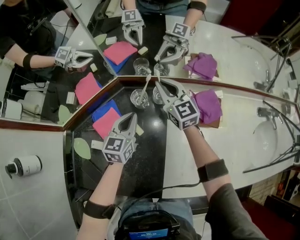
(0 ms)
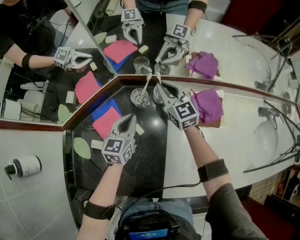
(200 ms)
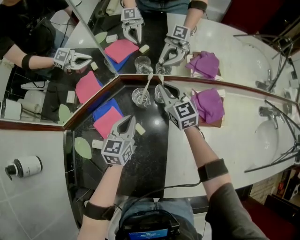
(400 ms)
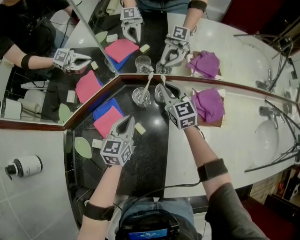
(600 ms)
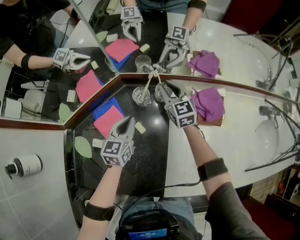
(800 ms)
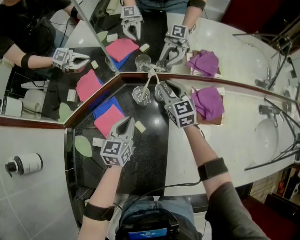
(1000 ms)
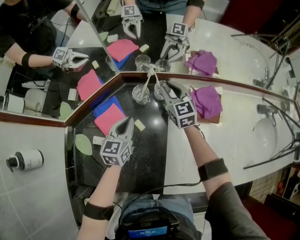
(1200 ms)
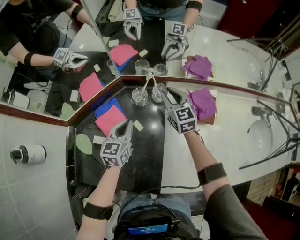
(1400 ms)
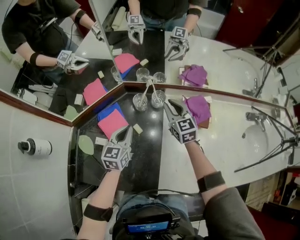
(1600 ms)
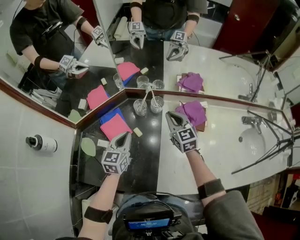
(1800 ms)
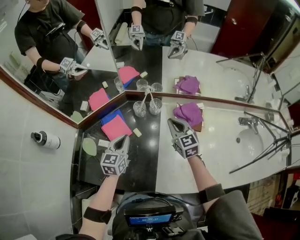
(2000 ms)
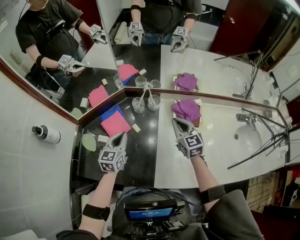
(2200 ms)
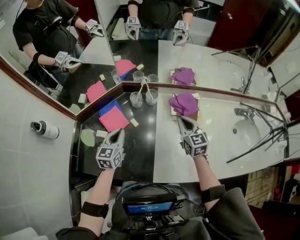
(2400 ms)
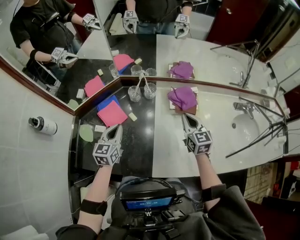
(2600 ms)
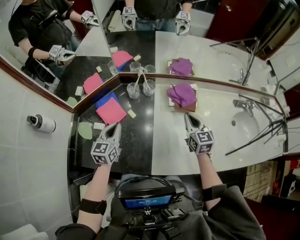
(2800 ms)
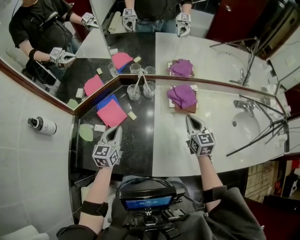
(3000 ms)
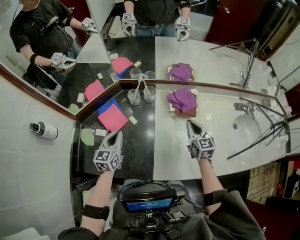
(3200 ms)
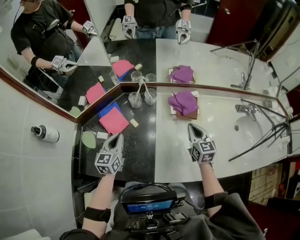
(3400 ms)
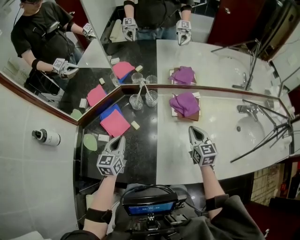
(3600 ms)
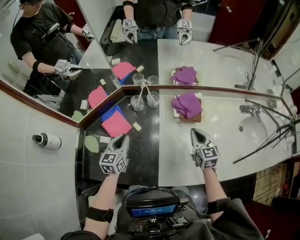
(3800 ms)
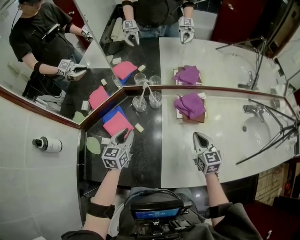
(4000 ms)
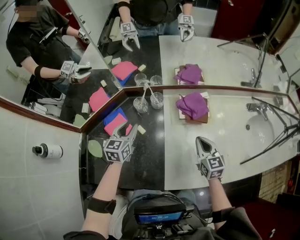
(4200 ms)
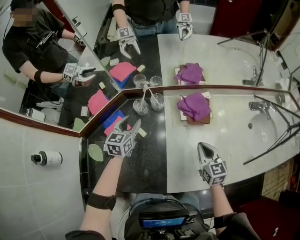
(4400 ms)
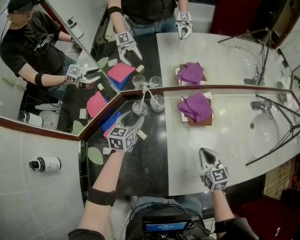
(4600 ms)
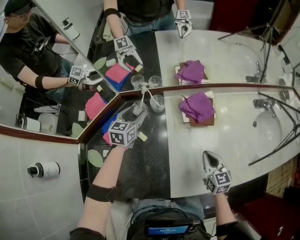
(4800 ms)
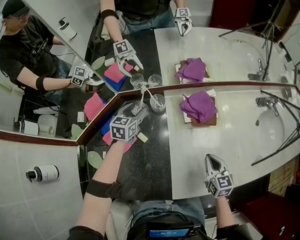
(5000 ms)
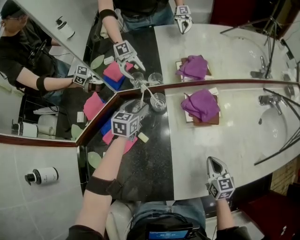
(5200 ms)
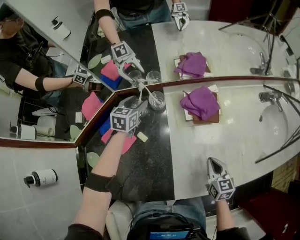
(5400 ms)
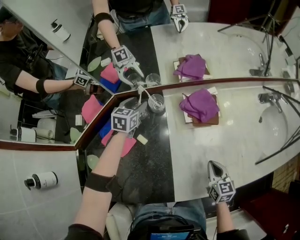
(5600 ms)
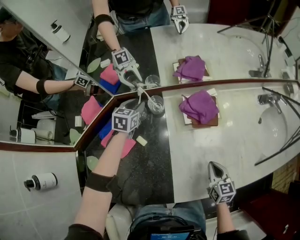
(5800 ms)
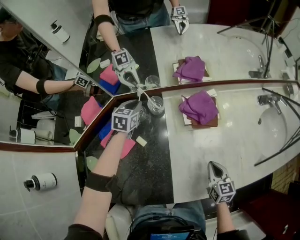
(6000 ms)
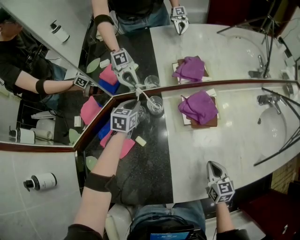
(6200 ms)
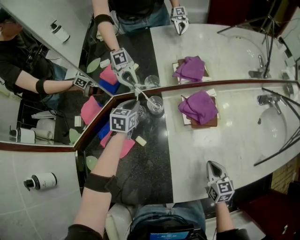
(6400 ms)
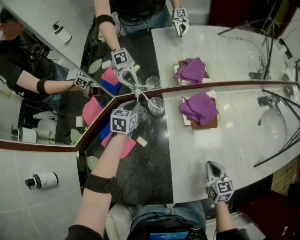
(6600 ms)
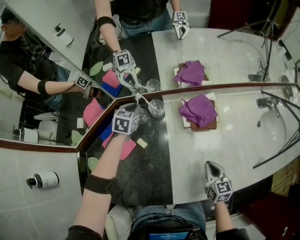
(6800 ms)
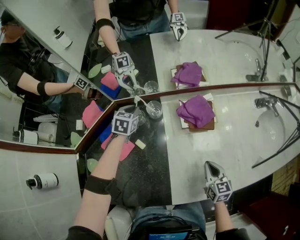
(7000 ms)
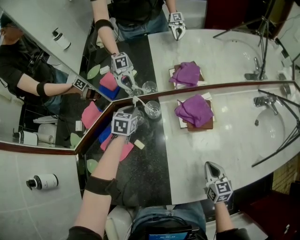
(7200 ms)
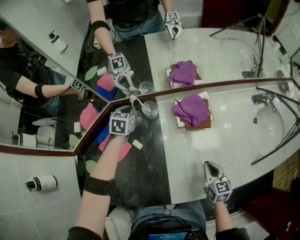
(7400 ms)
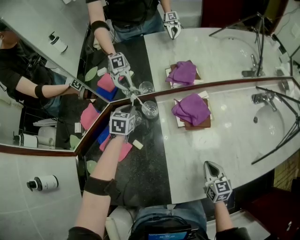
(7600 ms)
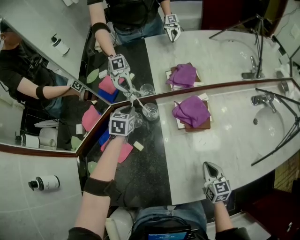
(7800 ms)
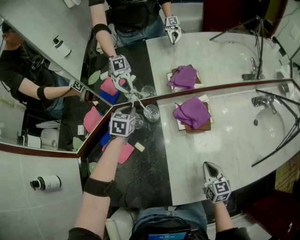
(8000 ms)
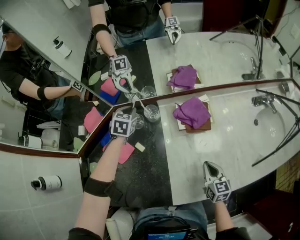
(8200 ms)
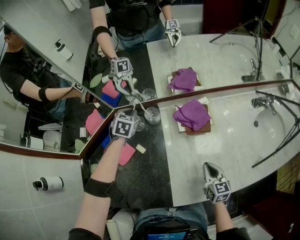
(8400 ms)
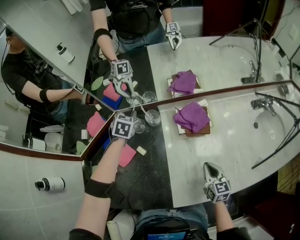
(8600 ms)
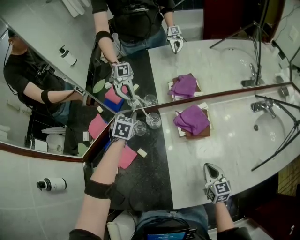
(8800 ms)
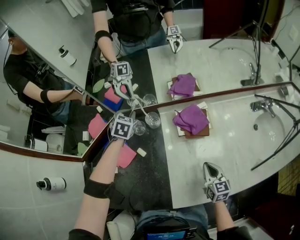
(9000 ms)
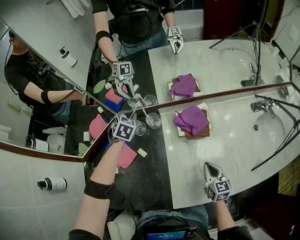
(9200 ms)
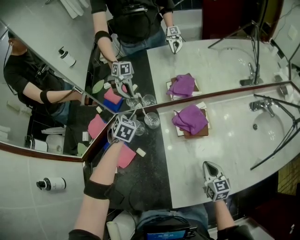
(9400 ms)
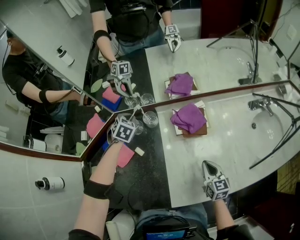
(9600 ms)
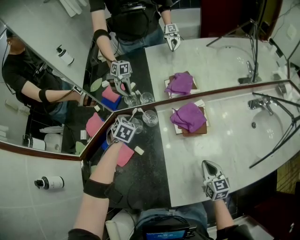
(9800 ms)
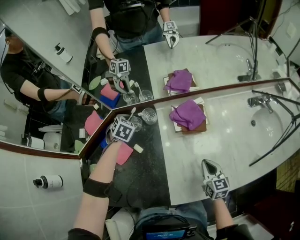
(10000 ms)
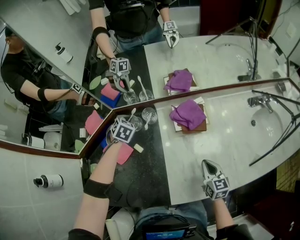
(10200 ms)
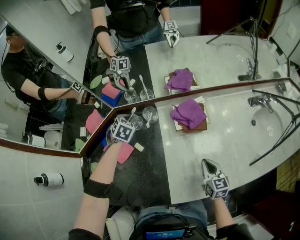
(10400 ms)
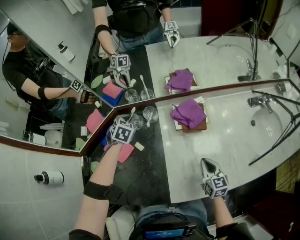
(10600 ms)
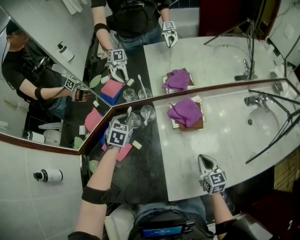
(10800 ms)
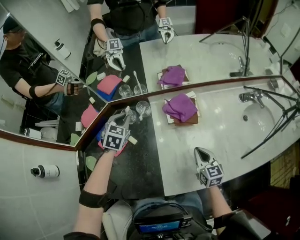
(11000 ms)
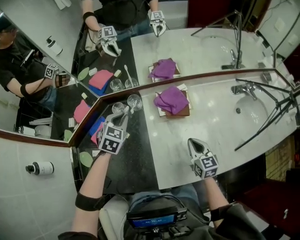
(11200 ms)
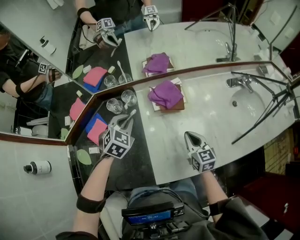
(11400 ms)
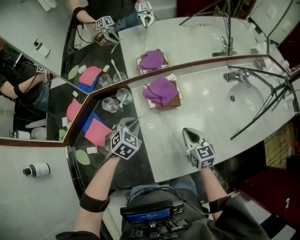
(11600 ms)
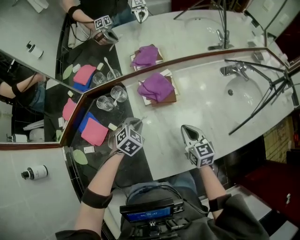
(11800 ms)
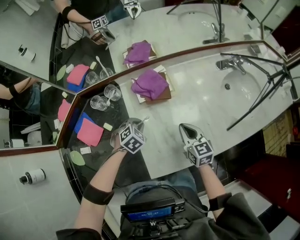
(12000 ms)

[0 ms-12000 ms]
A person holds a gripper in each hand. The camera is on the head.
0 ms to 1600 ms: The two grippers go roughly 10 cm backward.
1600 ms to 3000 ms: The right gripper moves backward and to the right, some 20 cm. Meanwhile the left gripper shifts approximately 10 cm backward.
3000 ms to 4400 ms: The left gripper shifts some 15 cm forward, and opens its fingers, while the right gripper shifts by approximately 5 cm.
4400 ms to 6000 ms: The right gripper is displaced downward and backward by roughly 10 cm, while the left gripper heads forward and downward, covering roughly 15 cm, and closes.
6000 ms to 7600 ms: The grippers stay close to where they were, moving slightly.
7600 ms to 9000 ms: The left gripper shifts roughly 5 cm upward.
9000 ms to 10400 ms: The left gripper shifts some 5 cm downward.
10400 ms to 12000 ms: The left gripper goes approximately 30 cm to the right and backward, and changes its angle by roughly 30 degrees, while the right gripper shifts by roughly 5 cm.

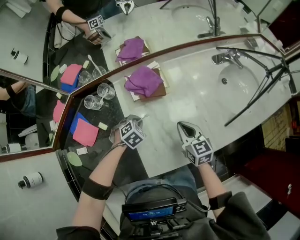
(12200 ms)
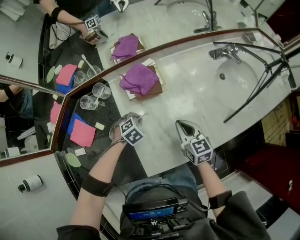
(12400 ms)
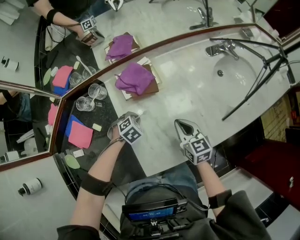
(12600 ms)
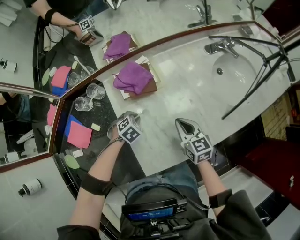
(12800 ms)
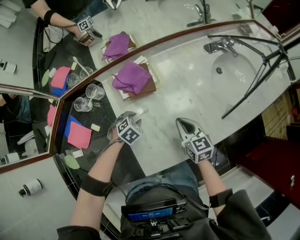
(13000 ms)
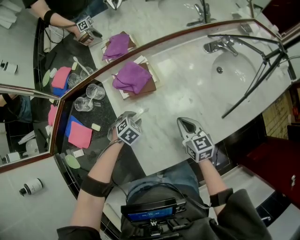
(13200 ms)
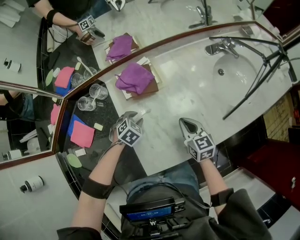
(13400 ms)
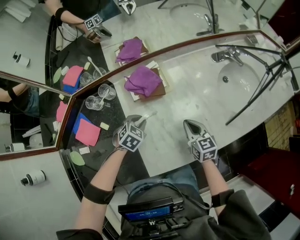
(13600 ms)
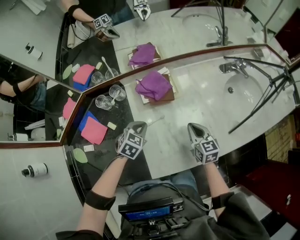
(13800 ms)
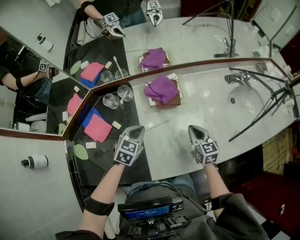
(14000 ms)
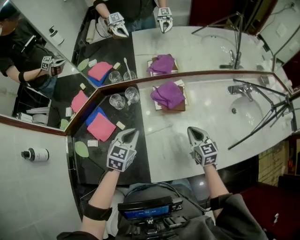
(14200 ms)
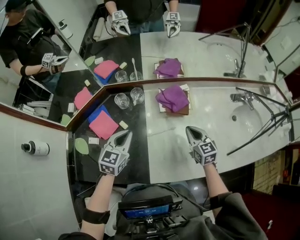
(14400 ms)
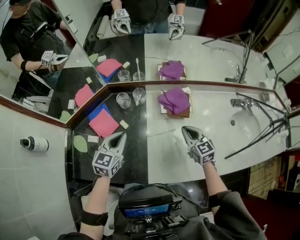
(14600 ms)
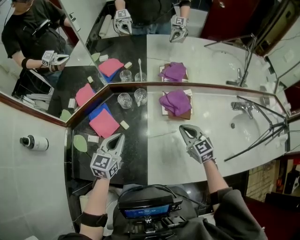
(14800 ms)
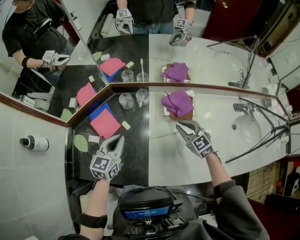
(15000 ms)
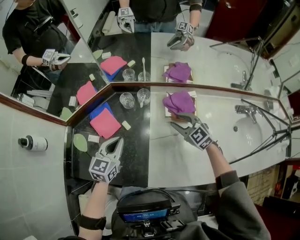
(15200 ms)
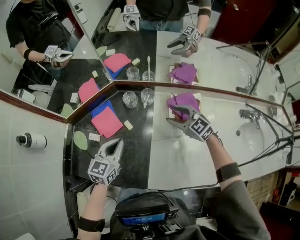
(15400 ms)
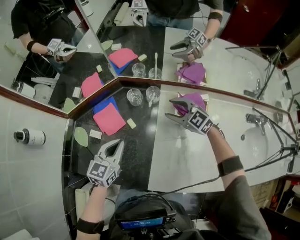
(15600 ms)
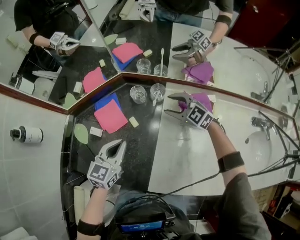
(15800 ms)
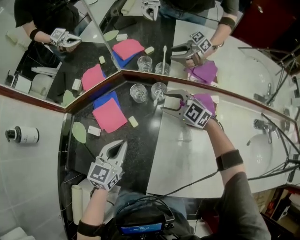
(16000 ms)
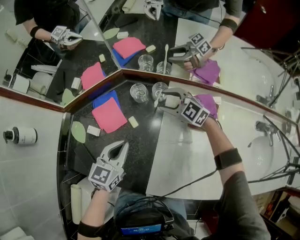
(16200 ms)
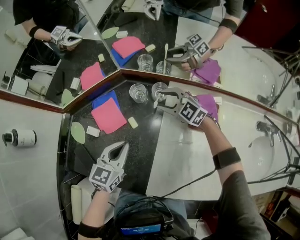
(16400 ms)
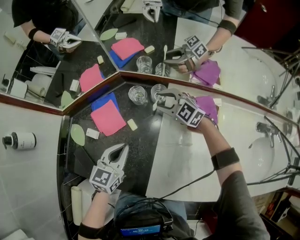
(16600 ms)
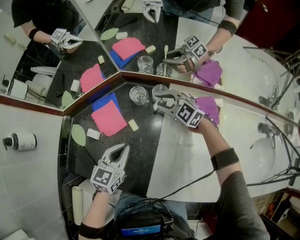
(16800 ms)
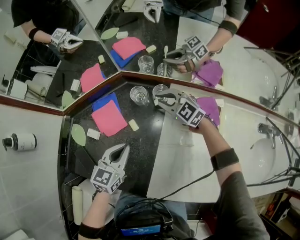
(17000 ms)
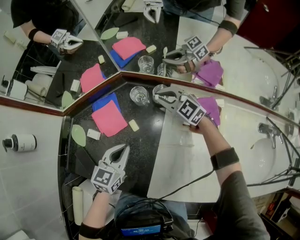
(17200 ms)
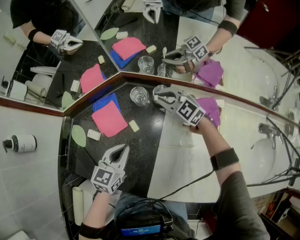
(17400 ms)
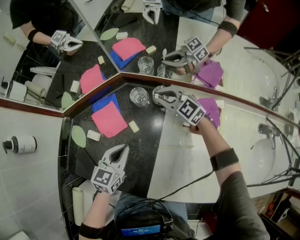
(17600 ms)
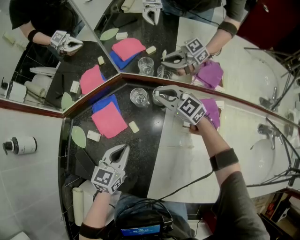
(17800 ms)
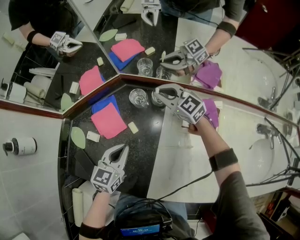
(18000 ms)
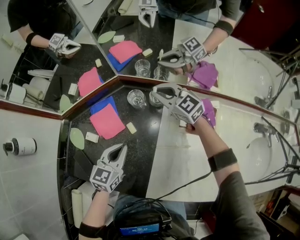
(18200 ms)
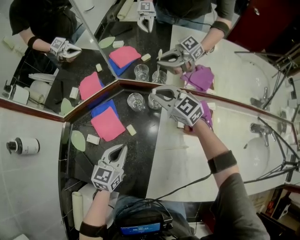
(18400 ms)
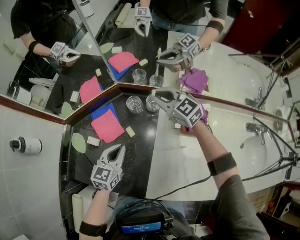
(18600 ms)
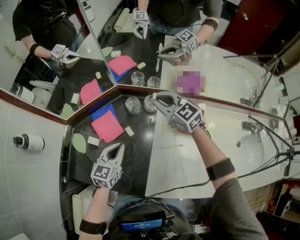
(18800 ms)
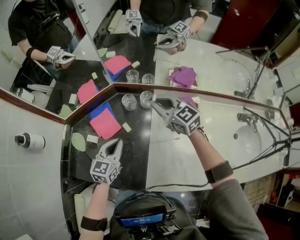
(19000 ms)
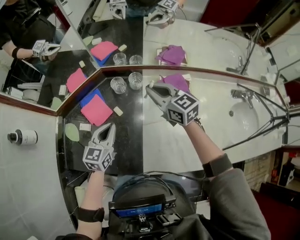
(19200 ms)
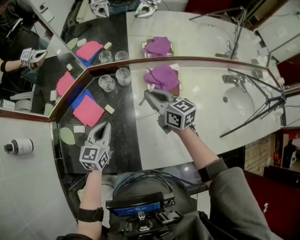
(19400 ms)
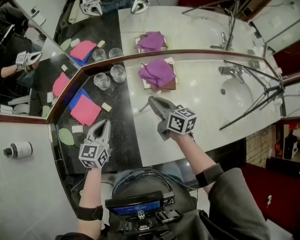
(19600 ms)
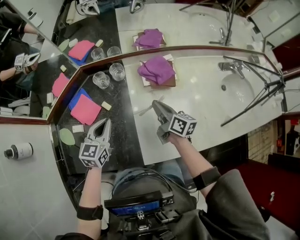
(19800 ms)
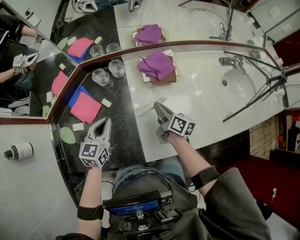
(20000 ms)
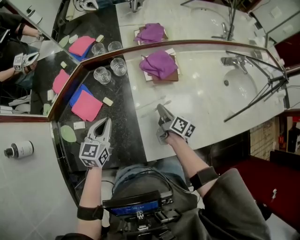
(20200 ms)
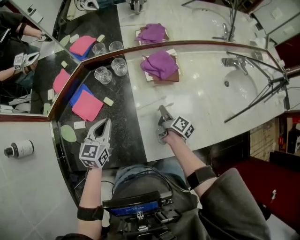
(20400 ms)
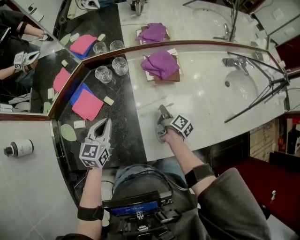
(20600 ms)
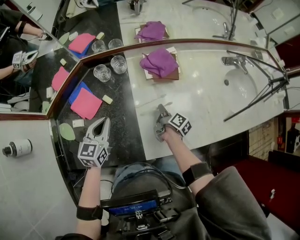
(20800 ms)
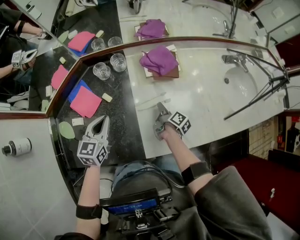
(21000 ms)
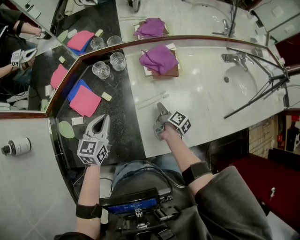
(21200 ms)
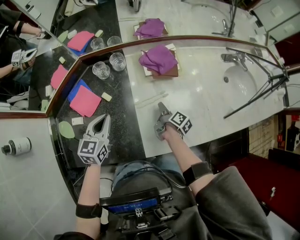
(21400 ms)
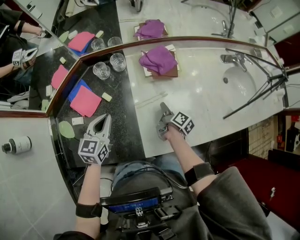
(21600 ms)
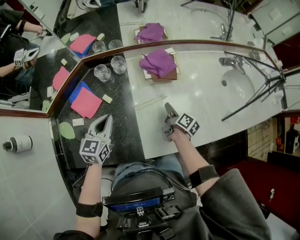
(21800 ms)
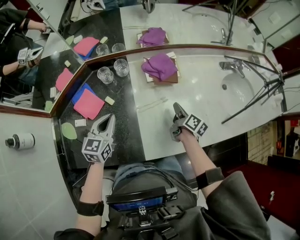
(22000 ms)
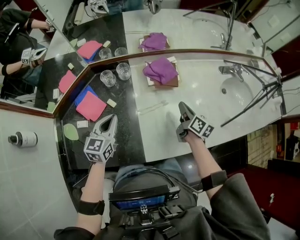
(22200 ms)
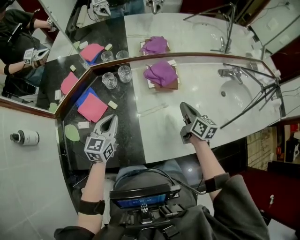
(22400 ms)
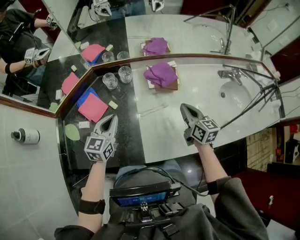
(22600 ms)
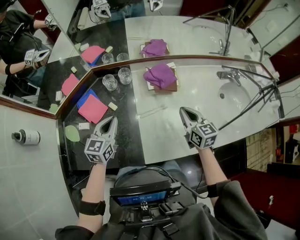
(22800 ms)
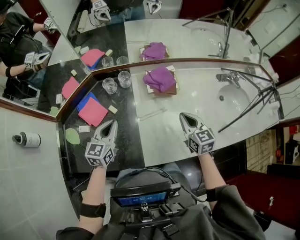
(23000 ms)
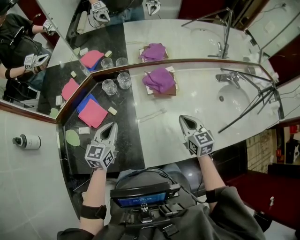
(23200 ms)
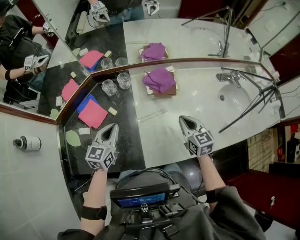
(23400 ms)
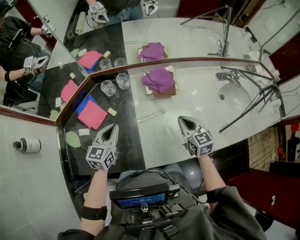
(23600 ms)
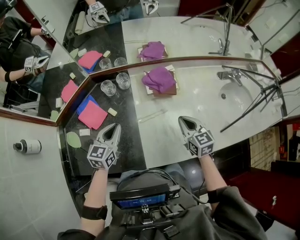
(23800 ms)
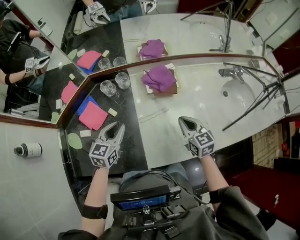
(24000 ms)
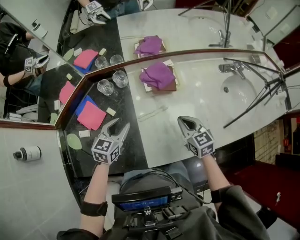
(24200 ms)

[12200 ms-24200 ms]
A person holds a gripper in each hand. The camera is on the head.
12200 ms to 13800 ms: The left gripper moves upward, about 10 cm, swivels about 30 degrees, and opens and closes again.
13800 ms to 15200 ms: The right gripper moves some 25 cm, changes its angle by about 60 degrees, and opens up; the left gripper shifts by approximately 25 cm, and swivels approximately 40 degrees.
15200 ms to 16600 ms: The right gripper shifts about 20 cm forward, to the left and downward, and rotates some 30 degrees. The left gripper moves downward, approximately 5 cm.
16600 ms to 18200 ms: The right gripper shifts approximately 5 cm upward, and closes up.
18200 ms to 19800 ms: The right gripper reaches about 10 cm upward, then returns, and rotates around the line of its fingers by approximately 60 degrees, clockwise from behind; the left gripper moves some 5 cm.
19800 ms to 21200 ms: The right gripper travels downward by some 15 cm, and swivels approximately 40 degrees.
21200 ms to 22600 ms: The right gripper heads upward, covering roughly 20 cm, rotates around the line of its fingers by approximately 60 degrees, counterclockwise from behind, and closes up.
22600 ms to 24200 ms: The left gripper travels to the right by some 5 cm, and opens up; the right gripper shifts by about 5 cm, and rotates some 20 degrees.
